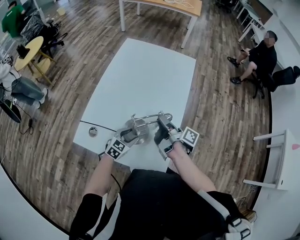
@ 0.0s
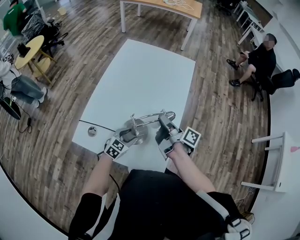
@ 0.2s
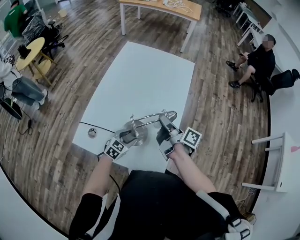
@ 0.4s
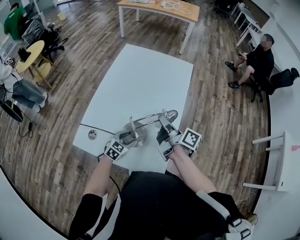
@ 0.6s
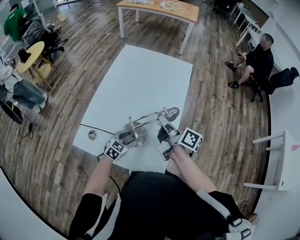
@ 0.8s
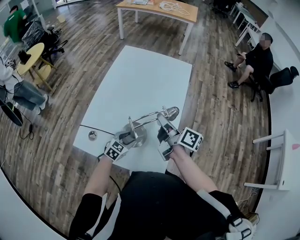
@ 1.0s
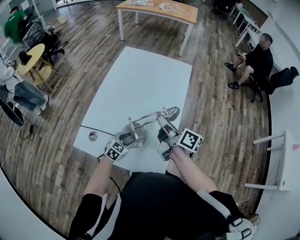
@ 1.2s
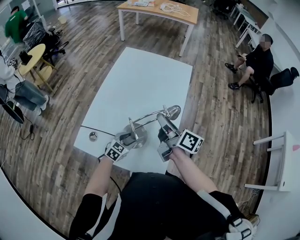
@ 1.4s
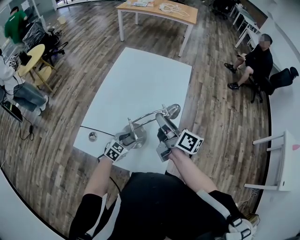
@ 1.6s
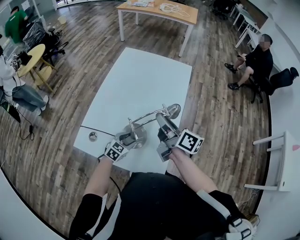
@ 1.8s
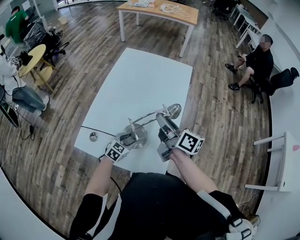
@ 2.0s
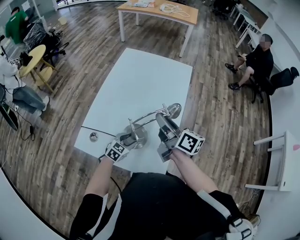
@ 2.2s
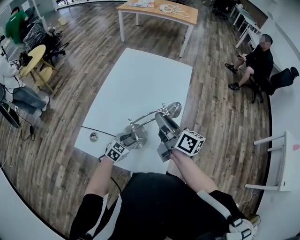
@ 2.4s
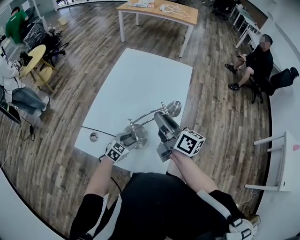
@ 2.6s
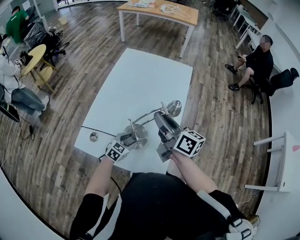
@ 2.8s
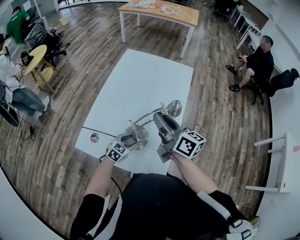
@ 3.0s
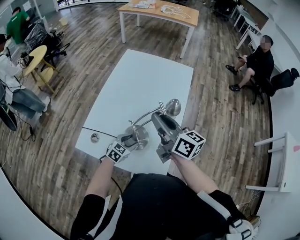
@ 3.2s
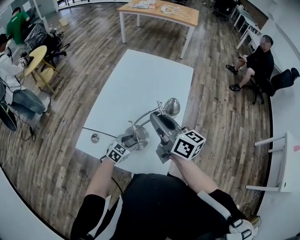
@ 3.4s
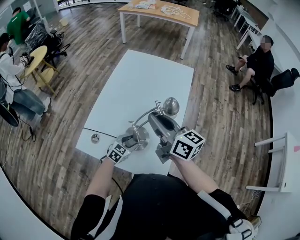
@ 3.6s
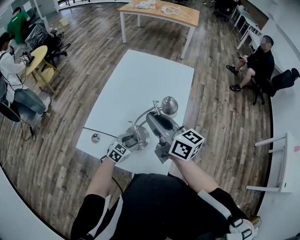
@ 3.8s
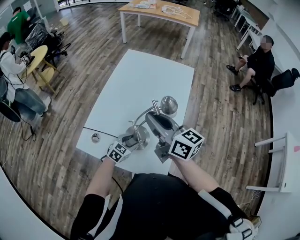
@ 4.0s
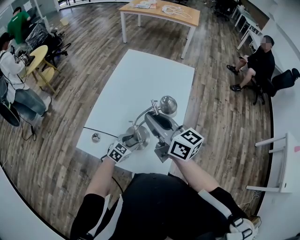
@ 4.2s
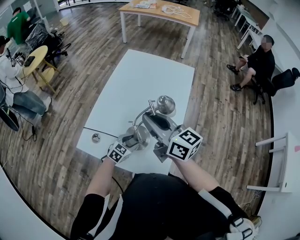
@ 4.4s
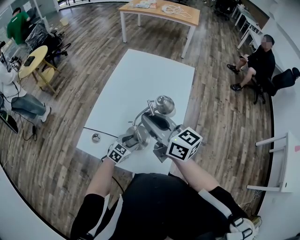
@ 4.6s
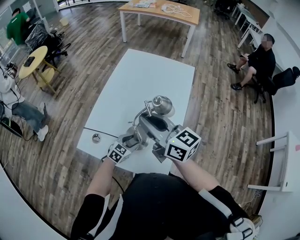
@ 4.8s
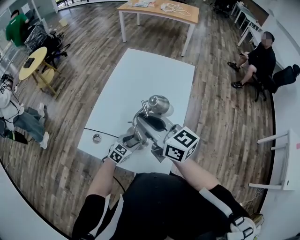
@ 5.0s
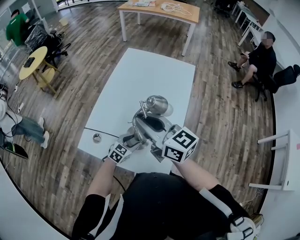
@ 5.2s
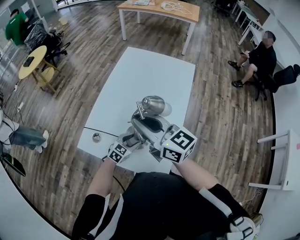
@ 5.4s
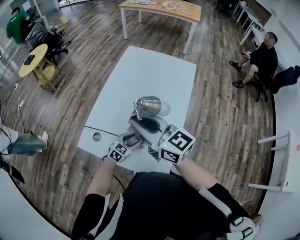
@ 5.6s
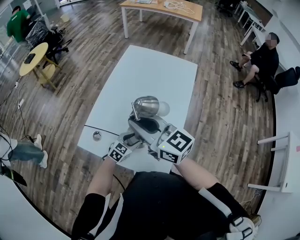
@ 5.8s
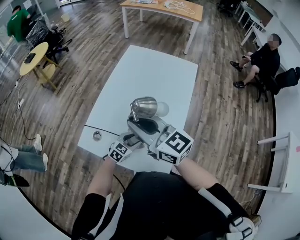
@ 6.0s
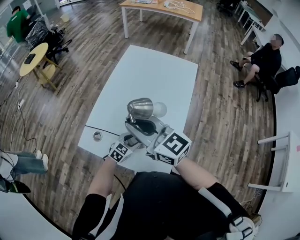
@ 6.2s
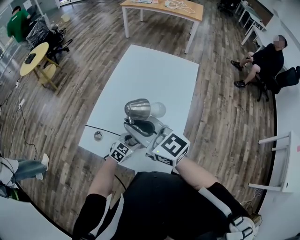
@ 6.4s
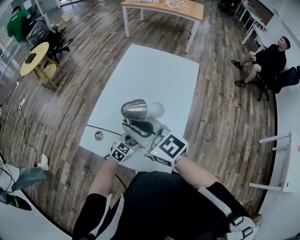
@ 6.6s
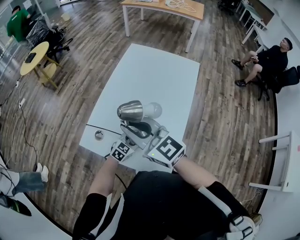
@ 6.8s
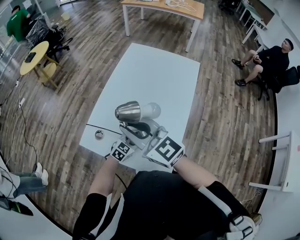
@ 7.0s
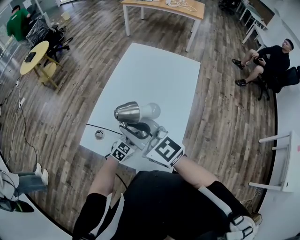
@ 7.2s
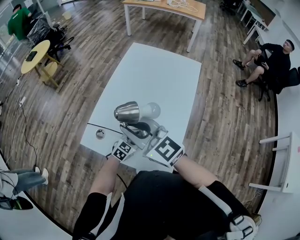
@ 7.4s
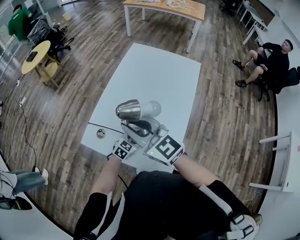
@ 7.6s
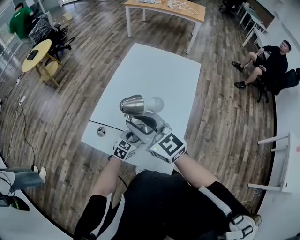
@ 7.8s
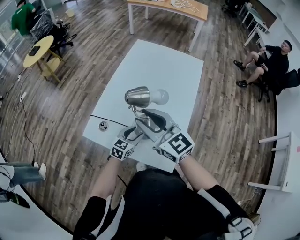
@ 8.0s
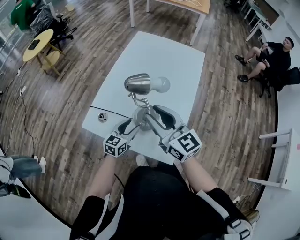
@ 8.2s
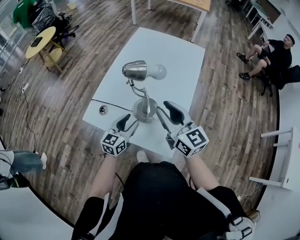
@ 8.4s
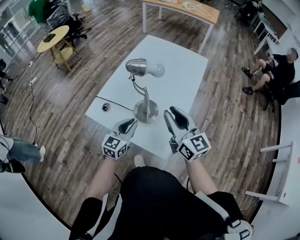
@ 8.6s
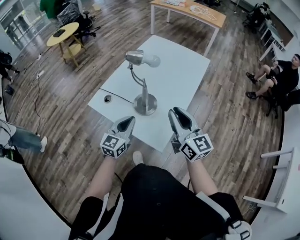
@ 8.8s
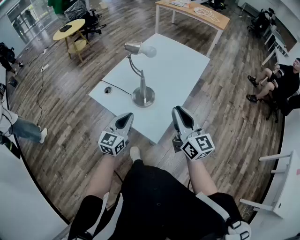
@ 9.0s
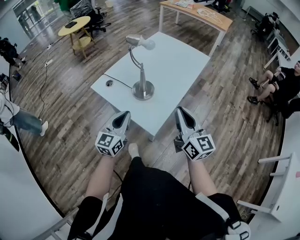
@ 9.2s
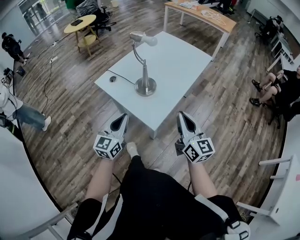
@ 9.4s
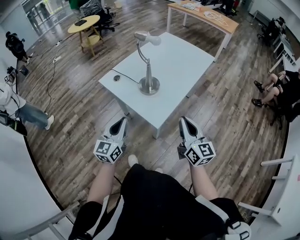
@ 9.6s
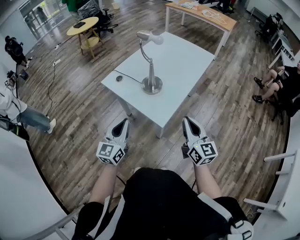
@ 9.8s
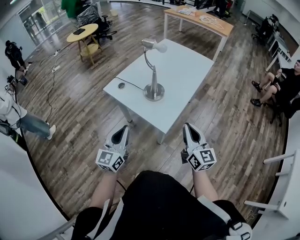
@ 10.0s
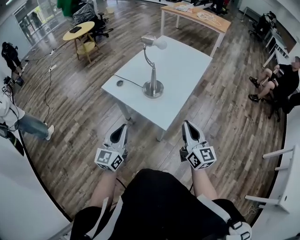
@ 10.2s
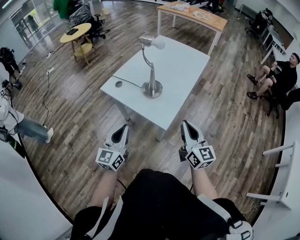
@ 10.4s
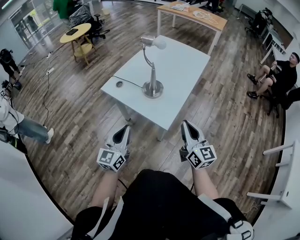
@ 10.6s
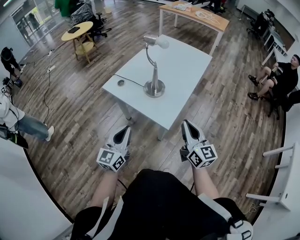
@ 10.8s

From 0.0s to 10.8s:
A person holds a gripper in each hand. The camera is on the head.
From 0.0s to 1.6s: The right gripper shifts some 10 cm upward, and rotates some 40 degrees.
From 1.6s to 3.0s: The grippers stay close to where they were, moving slightly.
From 3.0s to 4.6s: The right gripper goes some 5 cm to the left.
From 4.6s to 6.2s: The right gripper goes some 5 cm to the left.
From 6.2s to 7.8s: The grippers stay close to where they were, moving slightly.
From 7.8s to 9.2s: The right gripper is displaced to the right and backward by about 30 cm, and closes up, while the left gripper moves upward and backward, about 30 cm, points its fingers some 30 degrees further upward, and closes.
From 9.2s to 10.8s: The right gripper is displaced backward by approximately 10 cm, while the left gripper heads backward and to the left, covering some 15 cm.

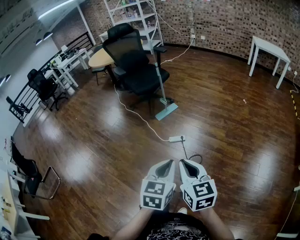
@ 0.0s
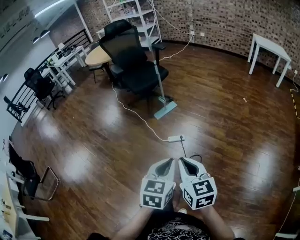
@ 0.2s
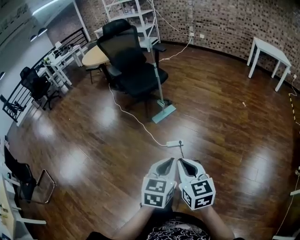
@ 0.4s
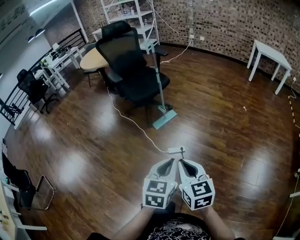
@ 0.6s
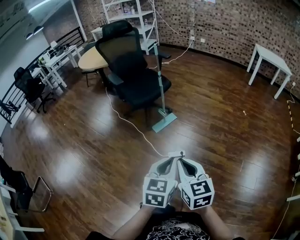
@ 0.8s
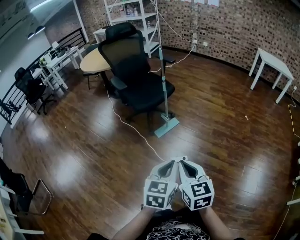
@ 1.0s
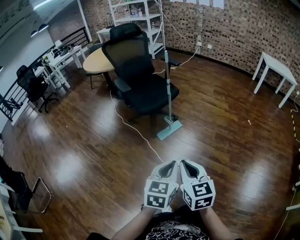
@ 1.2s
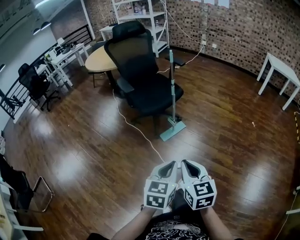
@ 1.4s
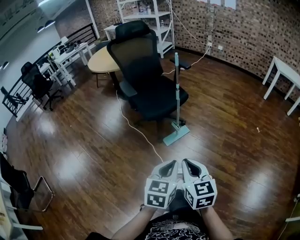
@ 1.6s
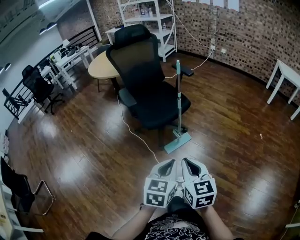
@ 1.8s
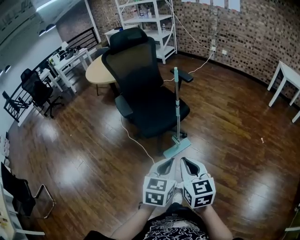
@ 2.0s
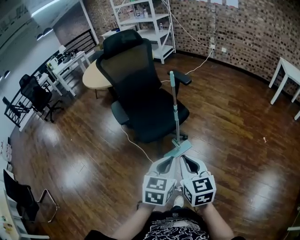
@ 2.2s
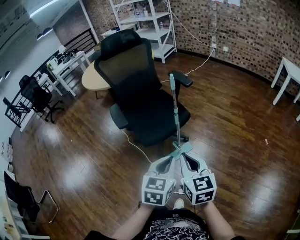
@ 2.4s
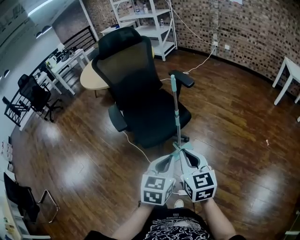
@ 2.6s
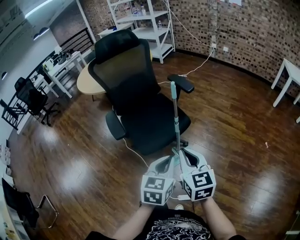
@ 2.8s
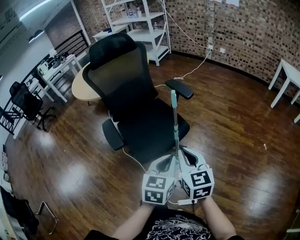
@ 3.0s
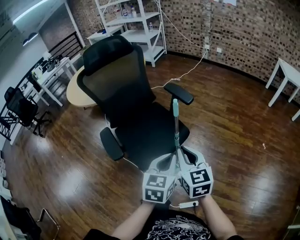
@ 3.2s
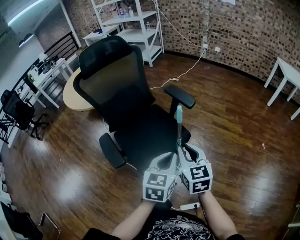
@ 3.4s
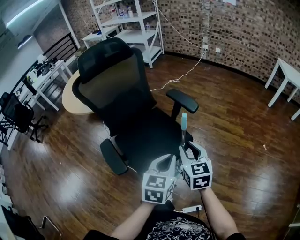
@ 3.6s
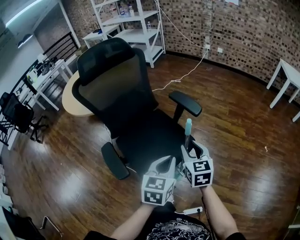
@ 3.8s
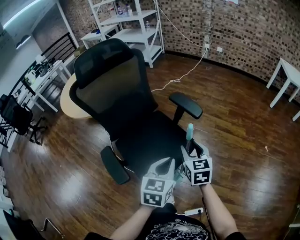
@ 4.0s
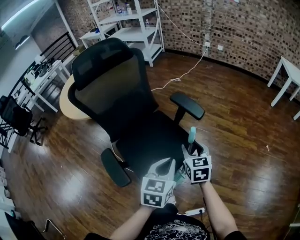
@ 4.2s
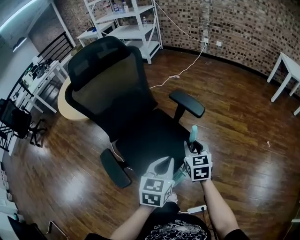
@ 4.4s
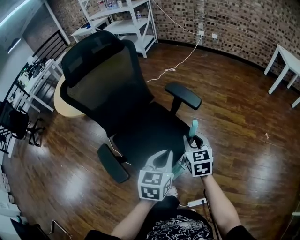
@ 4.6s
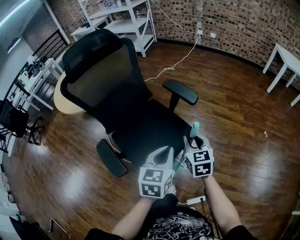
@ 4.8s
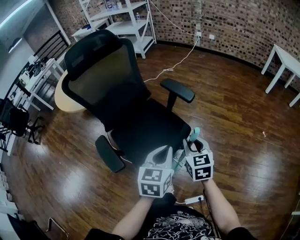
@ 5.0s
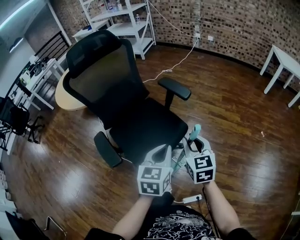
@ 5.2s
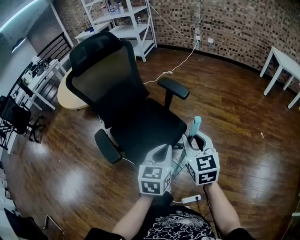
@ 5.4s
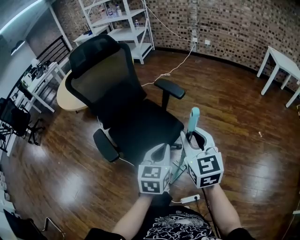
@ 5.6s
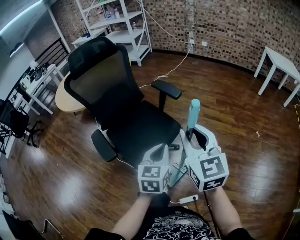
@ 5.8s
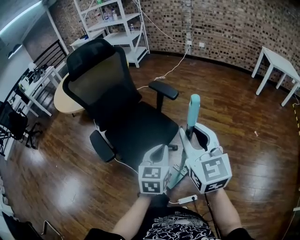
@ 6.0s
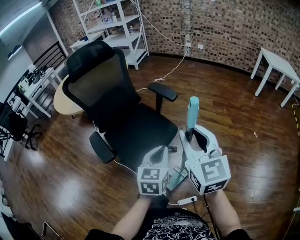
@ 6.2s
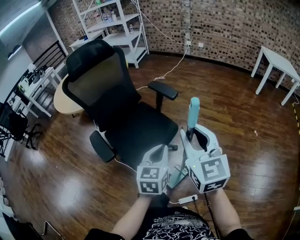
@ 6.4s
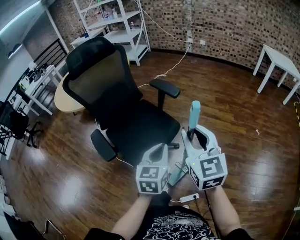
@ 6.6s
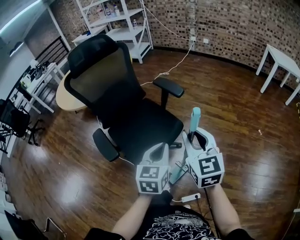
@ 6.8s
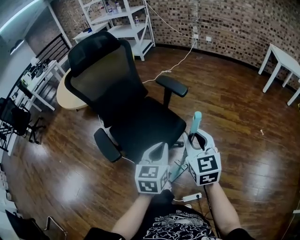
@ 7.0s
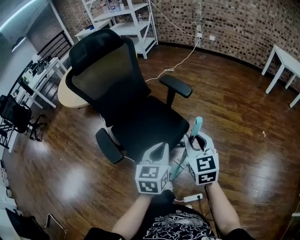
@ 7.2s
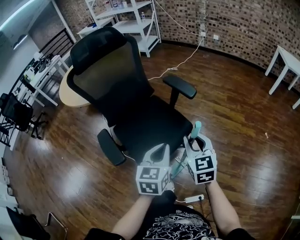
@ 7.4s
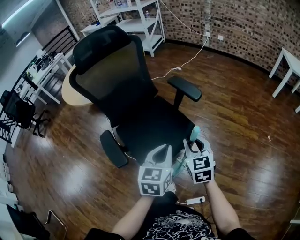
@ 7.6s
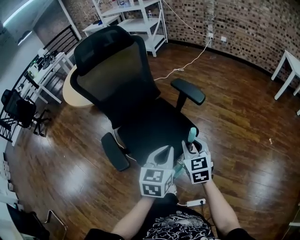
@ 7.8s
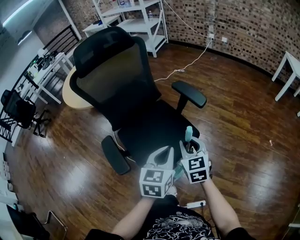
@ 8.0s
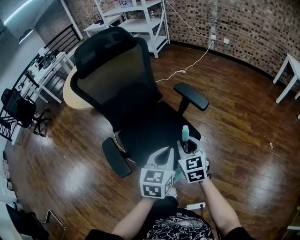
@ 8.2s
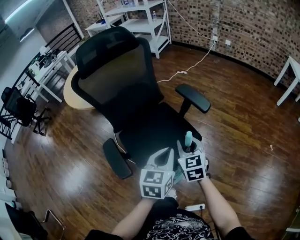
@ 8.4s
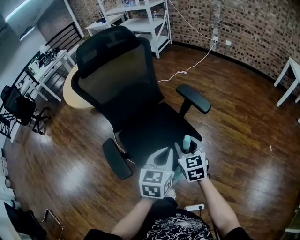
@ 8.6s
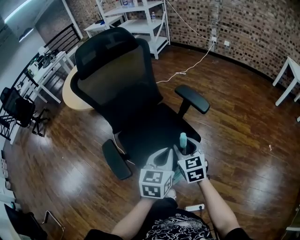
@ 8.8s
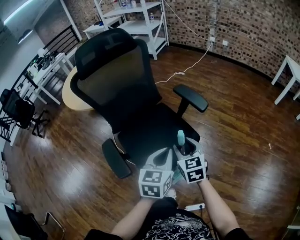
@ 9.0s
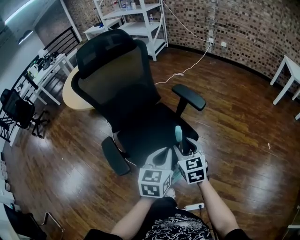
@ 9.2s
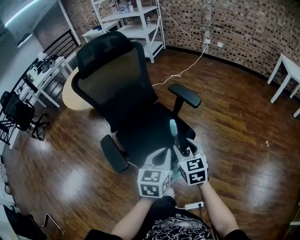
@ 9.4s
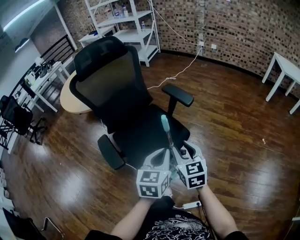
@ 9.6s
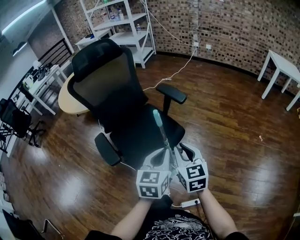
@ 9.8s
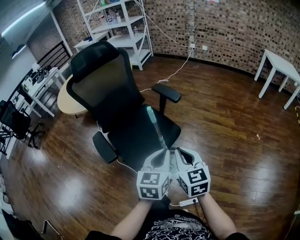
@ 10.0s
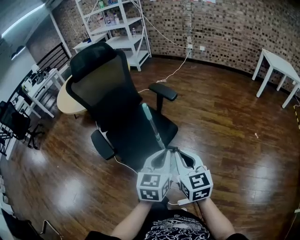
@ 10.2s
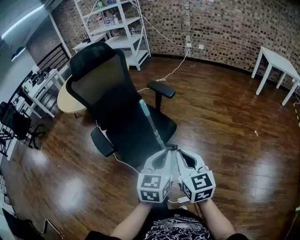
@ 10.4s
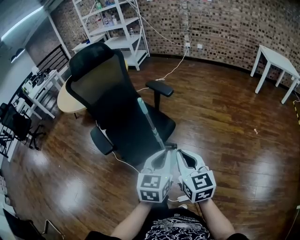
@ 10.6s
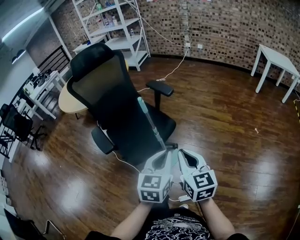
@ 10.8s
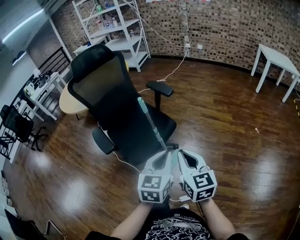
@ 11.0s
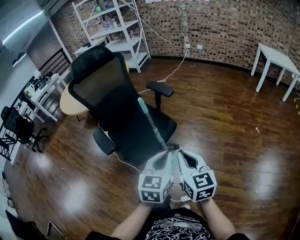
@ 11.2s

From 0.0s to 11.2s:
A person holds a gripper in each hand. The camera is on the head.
From 0.0s to 1.6s: The pair of grippers is taken forward, approximately 50 cm.
From 1.6s to 3.2s: The pair of grippers is taken forward, roughly 50 cm.
From 3.2s to 4.8s: The left gripper shifts approximately 10 cm forward and to the left, while the right gripper goes approximately 20 cm forward and downward, and opens.
From 4.8s to 6.4s: The right gripper heads upward and backward, covering some 25 cm, and changes its angle by approximately 20 degrees. The left gripper is displaced backward and to the right by some 10 cm.
From 6.4s to 8.0s: The right gripper shifts some 25 cm downward, forward and to the left, while the left gripper travels forward and to the left by roughly 15 cm.
From 8.0s to 9.6s: Both grippers move backward, about 5 cm.
From 9.6s to 11.2s: The grippers both shift backward, to the right and upward by approximately 20 cm. The right gripper closes.

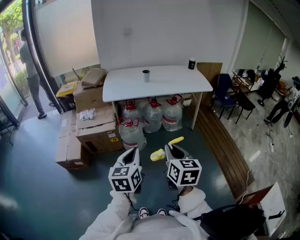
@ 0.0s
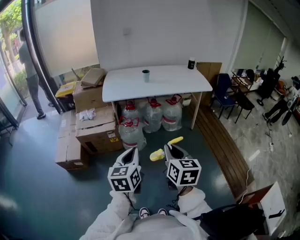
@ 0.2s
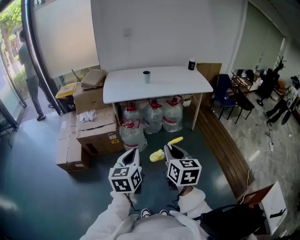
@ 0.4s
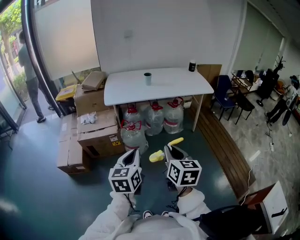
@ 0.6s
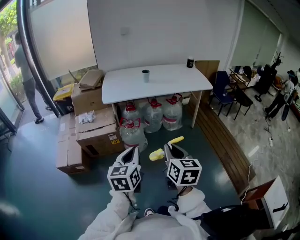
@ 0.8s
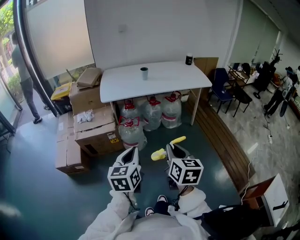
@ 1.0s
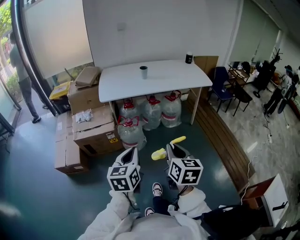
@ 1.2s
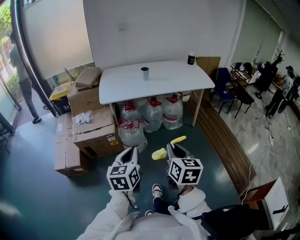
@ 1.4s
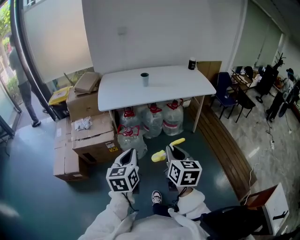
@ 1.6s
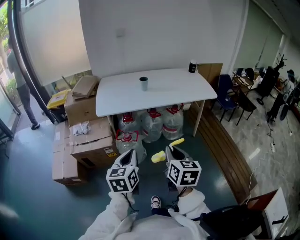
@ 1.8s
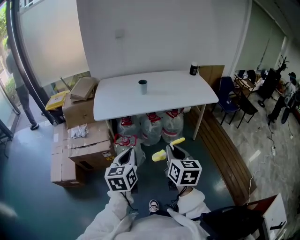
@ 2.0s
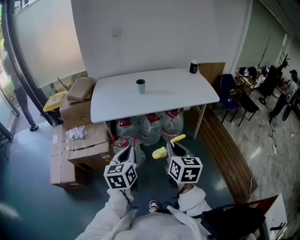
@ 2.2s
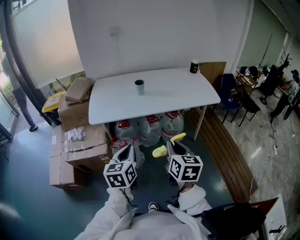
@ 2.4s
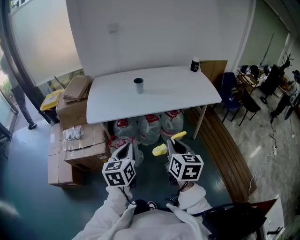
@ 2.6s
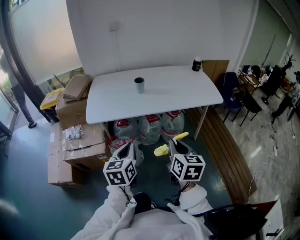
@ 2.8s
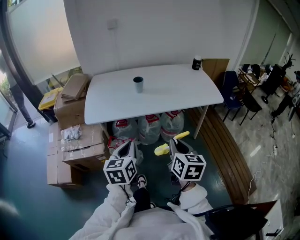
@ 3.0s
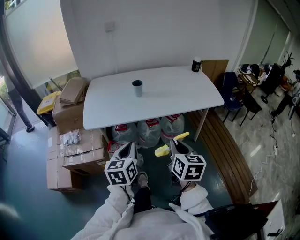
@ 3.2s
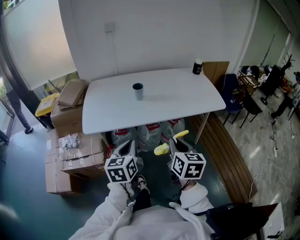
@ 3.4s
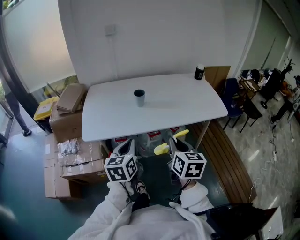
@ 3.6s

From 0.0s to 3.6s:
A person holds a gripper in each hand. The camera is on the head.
From 0.0s to 1.8s: Both grippers travel together forward, about 15 cm.
From 1.8s to 3.6s: The grippers both shift forward by some 30 cm.
